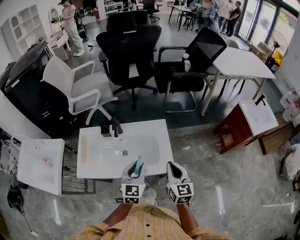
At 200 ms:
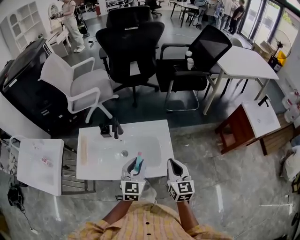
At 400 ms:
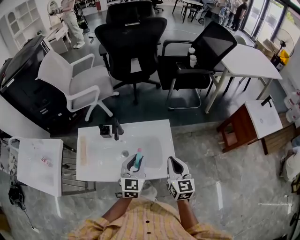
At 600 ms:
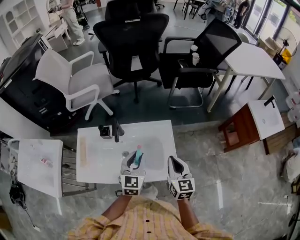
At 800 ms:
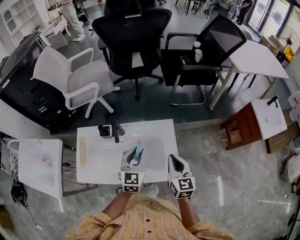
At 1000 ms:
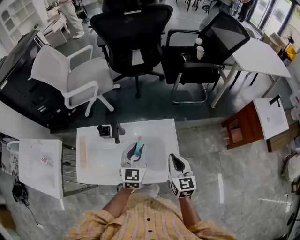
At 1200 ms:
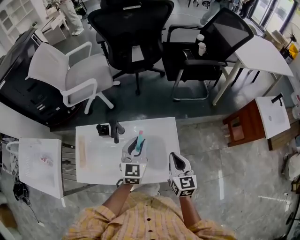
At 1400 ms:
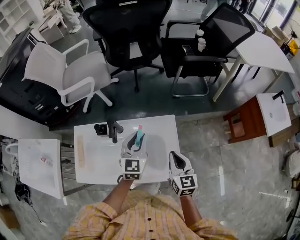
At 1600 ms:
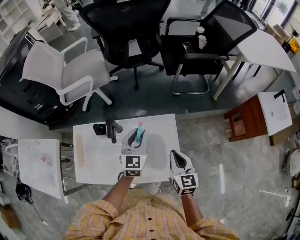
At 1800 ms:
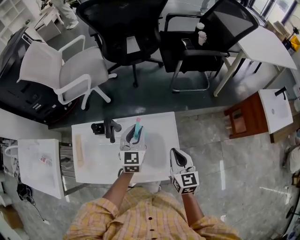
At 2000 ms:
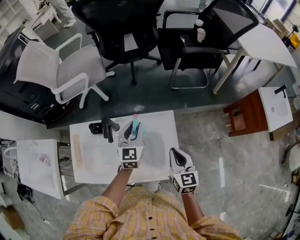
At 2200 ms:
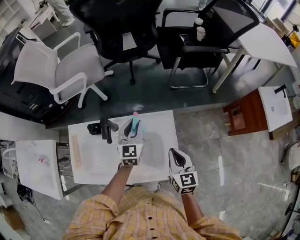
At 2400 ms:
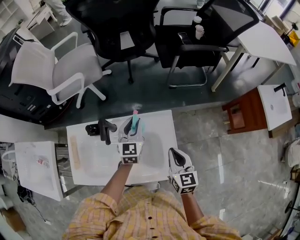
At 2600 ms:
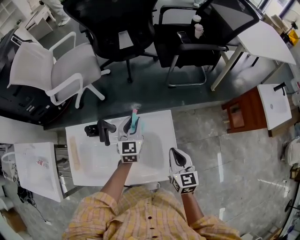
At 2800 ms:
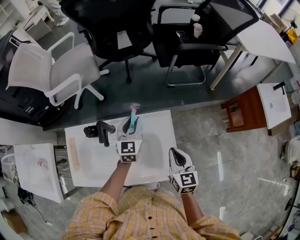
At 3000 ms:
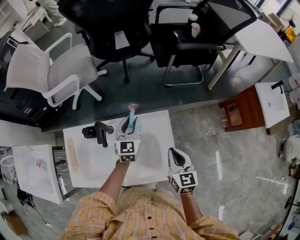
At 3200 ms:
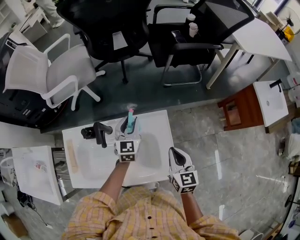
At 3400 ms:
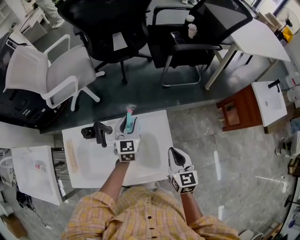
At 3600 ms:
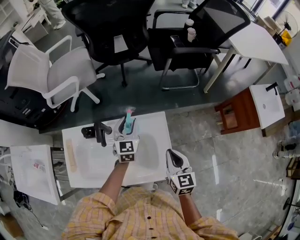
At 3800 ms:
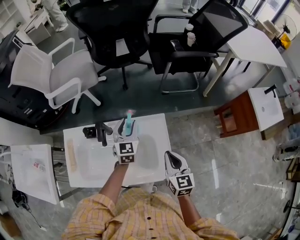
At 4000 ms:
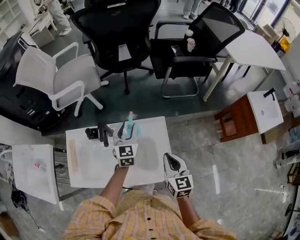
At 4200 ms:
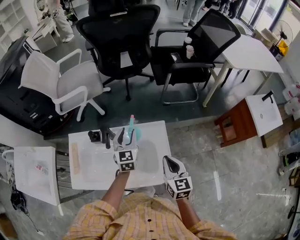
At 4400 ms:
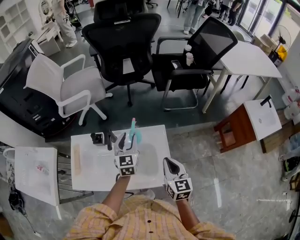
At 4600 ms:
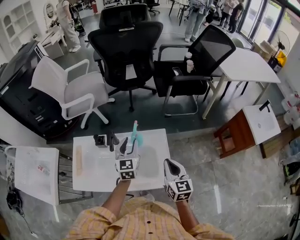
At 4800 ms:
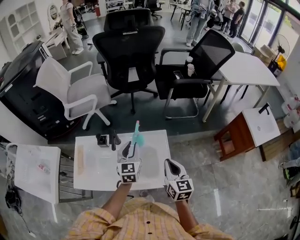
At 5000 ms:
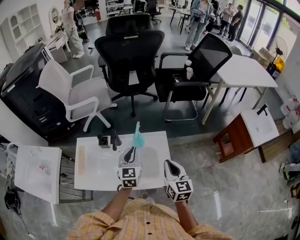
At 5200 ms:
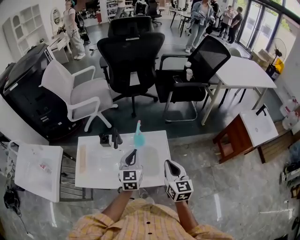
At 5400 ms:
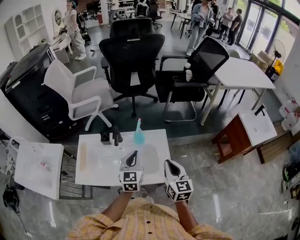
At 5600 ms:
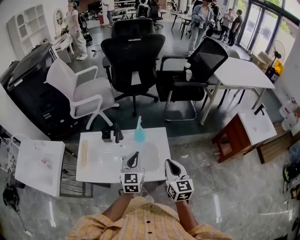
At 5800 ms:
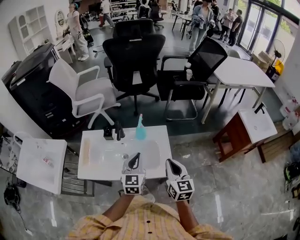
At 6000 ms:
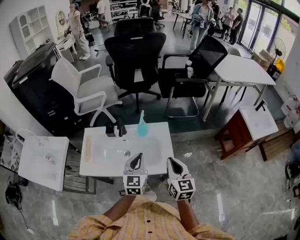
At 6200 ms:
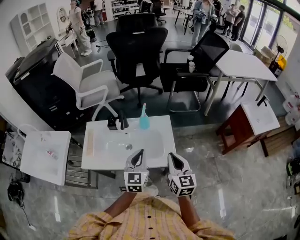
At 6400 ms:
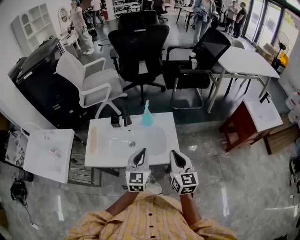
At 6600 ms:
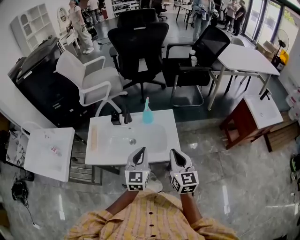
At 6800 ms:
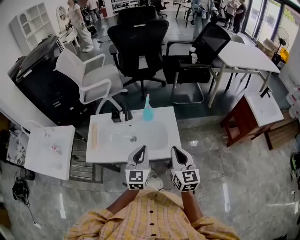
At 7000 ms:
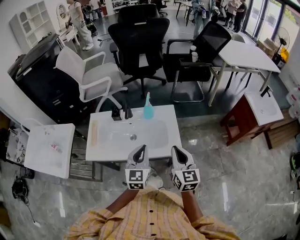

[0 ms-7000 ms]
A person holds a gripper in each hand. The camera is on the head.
0 ms to 1400 ms: The left gripper shifts about 20 cm forward. Meanwhile the right gripper moves forward and downward, approximately 15 cm.
1400 ms to 2800 ms: The left gripper travels forward and downward by some 10 cm.
2800 ms to 4200 ms: The left gripper ends up some 5 cm from where it was; the right gripper is displaced upward by approximately 5 cm.
4200 ms to 5600 ms: The right gripper is displaced backward and upward by roughly 15 cm. Meanwhile the left gripper moves backward and upward, some 20 cm, and closes.
5600 ms to 7000 ms: The two grippers go roughly 10 cm backward.

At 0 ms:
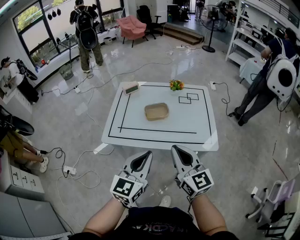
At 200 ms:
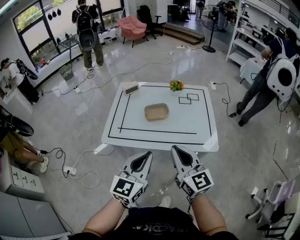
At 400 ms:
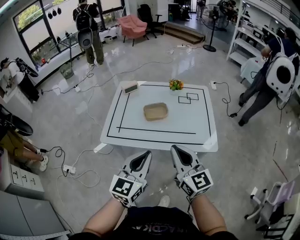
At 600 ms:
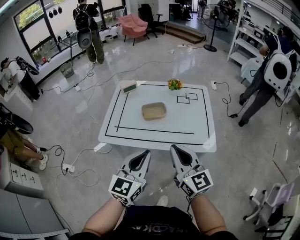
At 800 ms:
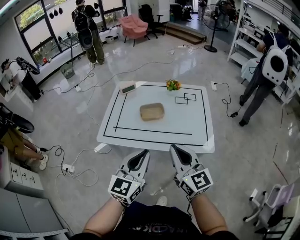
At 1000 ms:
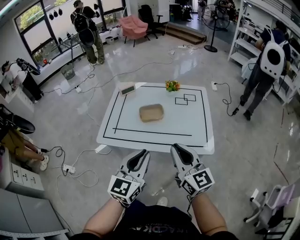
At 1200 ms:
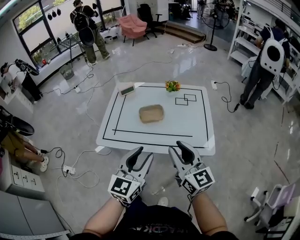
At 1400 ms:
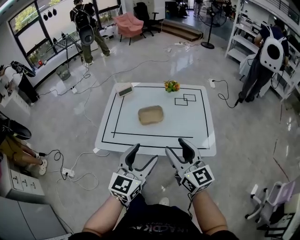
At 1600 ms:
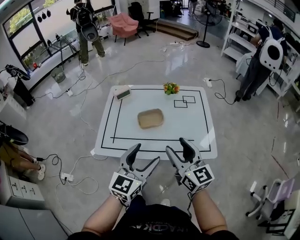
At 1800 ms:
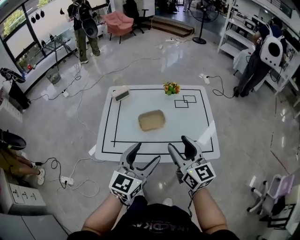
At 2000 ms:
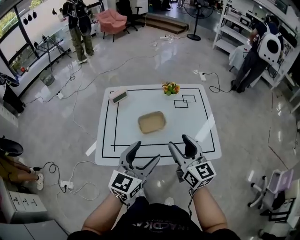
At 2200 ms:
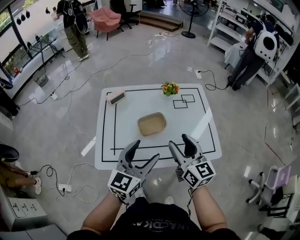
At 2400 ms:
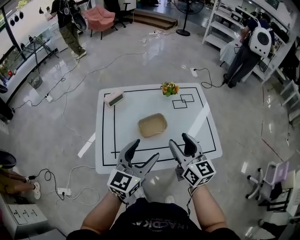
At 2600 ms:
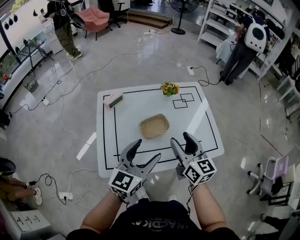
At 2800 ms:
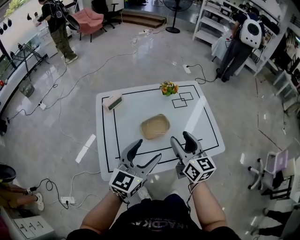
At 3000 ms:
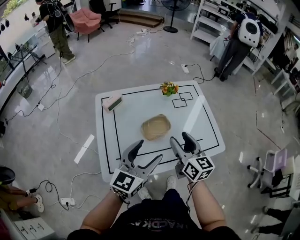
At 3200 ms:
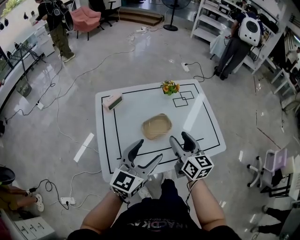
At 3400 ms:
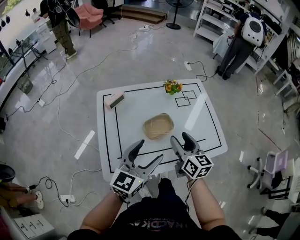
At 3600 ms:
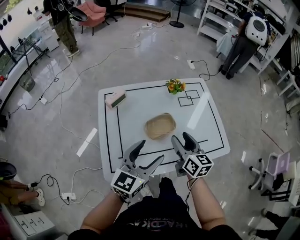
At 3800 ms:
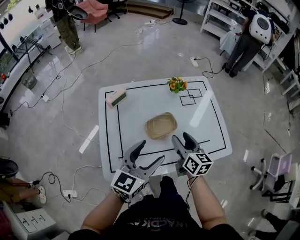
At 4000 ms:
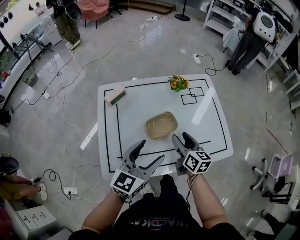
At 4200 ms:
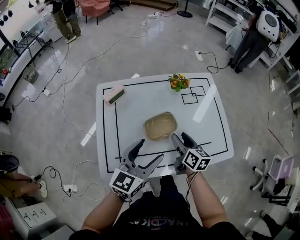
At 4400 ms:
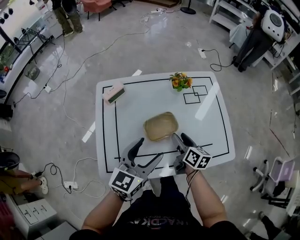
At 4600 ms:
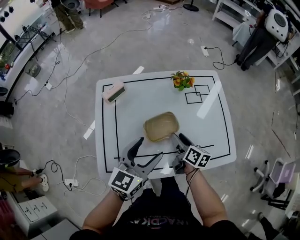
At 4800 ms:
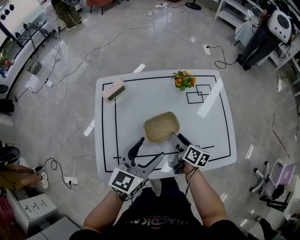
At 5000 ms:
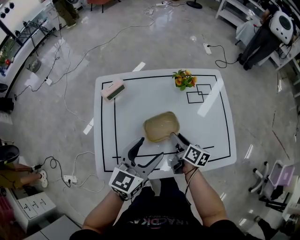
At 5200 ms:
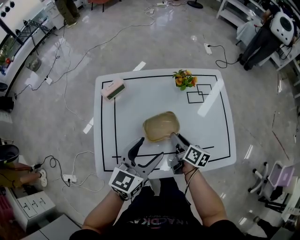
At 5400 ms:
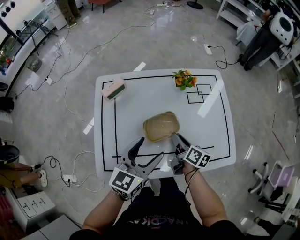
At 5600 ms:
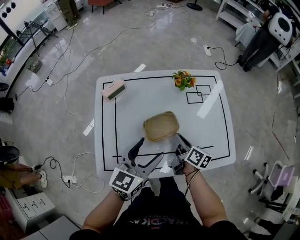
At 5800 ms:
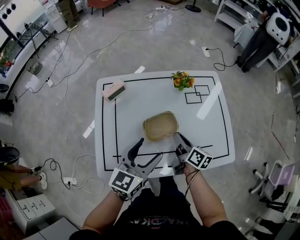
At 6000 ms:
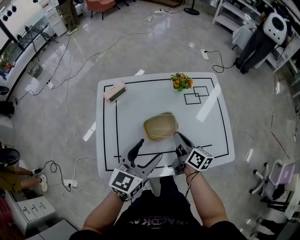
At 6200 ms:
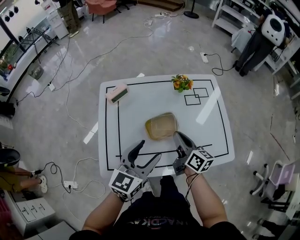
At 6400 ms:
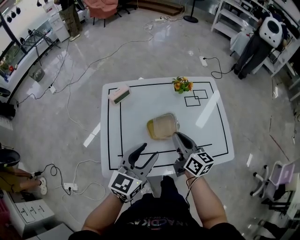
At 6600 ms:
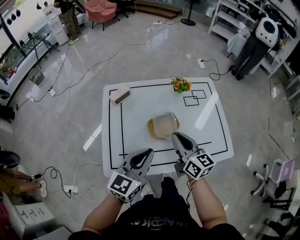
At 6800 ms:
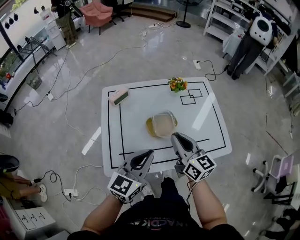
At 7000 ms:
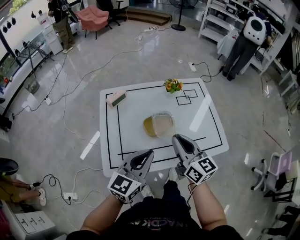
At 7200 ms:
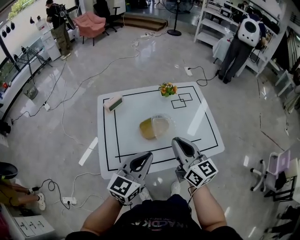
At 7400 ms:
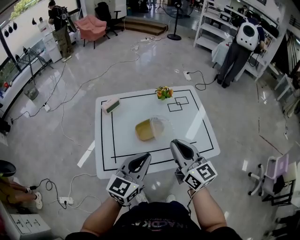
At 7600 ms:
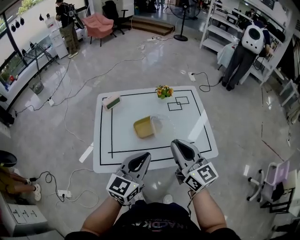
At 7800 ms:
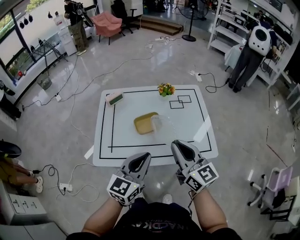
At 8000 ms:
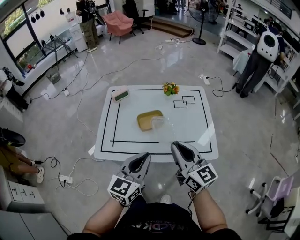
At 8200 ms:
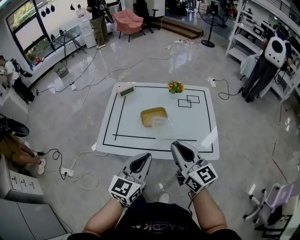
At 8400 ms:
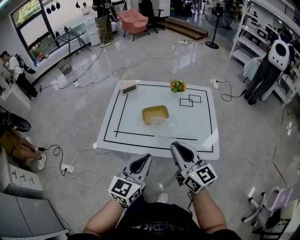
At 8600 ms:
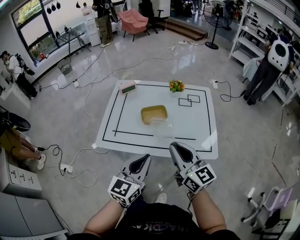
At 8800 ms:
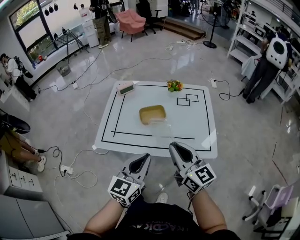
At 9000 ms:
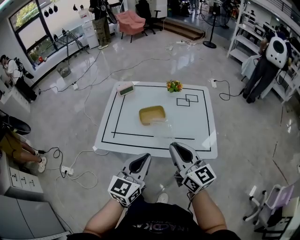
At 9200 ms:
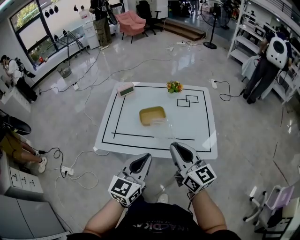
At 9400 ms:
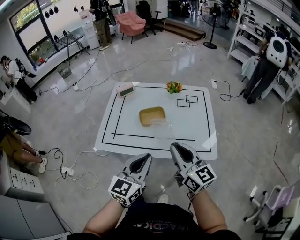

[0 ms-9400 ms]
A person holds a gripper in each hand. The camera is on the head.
0 ms to 1600 ms: The two grippers go approximately 10 cm forward. The left gripper opens. Meanwhile the right gripper opens up.
1600 ms to 3200 ms: The left gripper shifts some 15 cm to the left and forward, and turns by about 20 degrees; the right gripper heads forward, to the left and downward, covering some 15 cm, and turns by about 30 degrees.
3200 ms to 4800 ms: The left gripper goes roughly 10 cm forward and downward. The right gripper shifts about 20 cm downward and forward, and turns by about 40 degrees.
4800 ms to 6200 ms: The right gripper heads upward, covering about 10 cm, and closes.
6200 ms to 7800 ms: The right gripper shifts about 25 cm upward and backward, and rotates some 40 degrees. The left gripper heads backward, to the right and upward, covering about 15 cm, and closes up.
7800 ms to 9400 ms: The left gripper travels backward by some 5 cm, while the right gripper ends up approximately 5 cm from where it was.

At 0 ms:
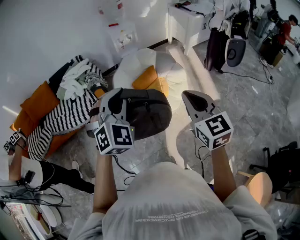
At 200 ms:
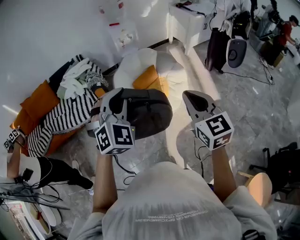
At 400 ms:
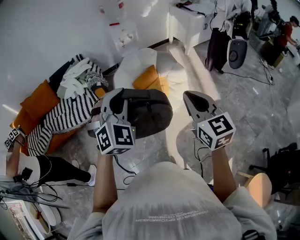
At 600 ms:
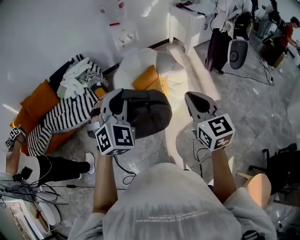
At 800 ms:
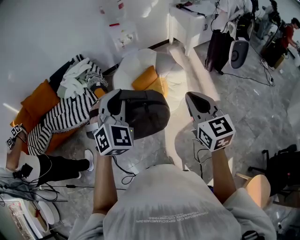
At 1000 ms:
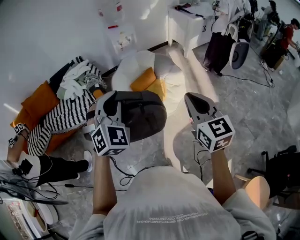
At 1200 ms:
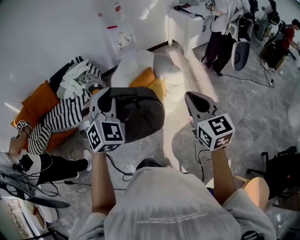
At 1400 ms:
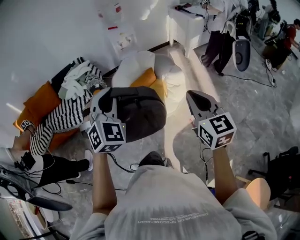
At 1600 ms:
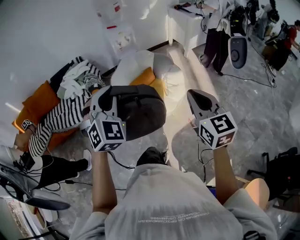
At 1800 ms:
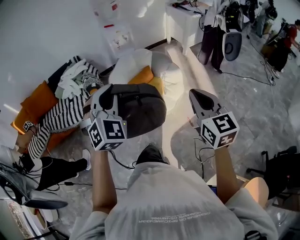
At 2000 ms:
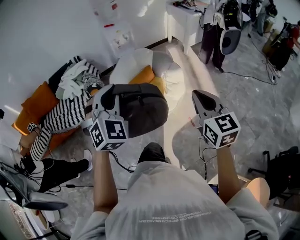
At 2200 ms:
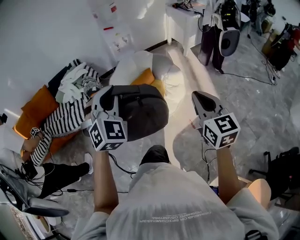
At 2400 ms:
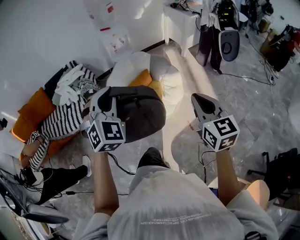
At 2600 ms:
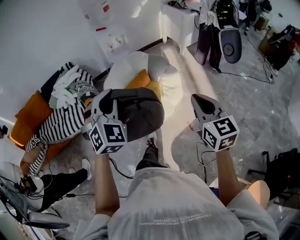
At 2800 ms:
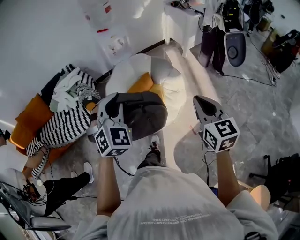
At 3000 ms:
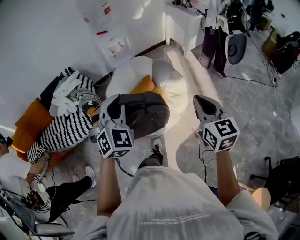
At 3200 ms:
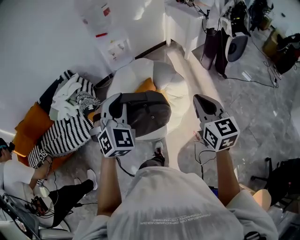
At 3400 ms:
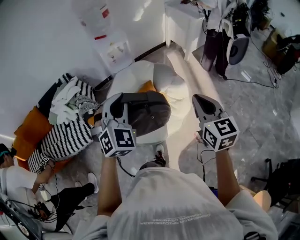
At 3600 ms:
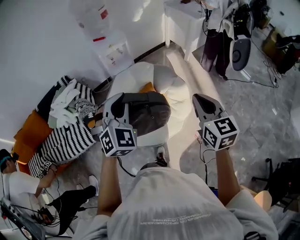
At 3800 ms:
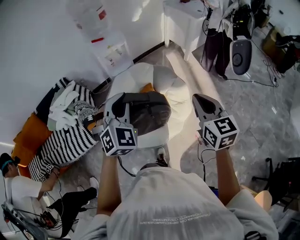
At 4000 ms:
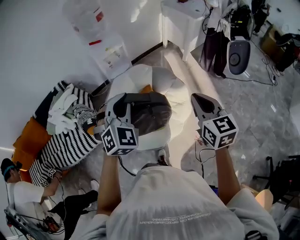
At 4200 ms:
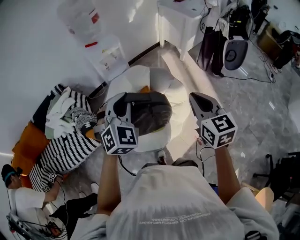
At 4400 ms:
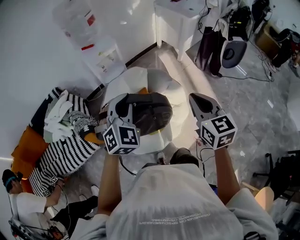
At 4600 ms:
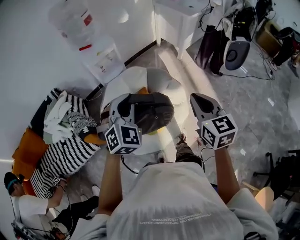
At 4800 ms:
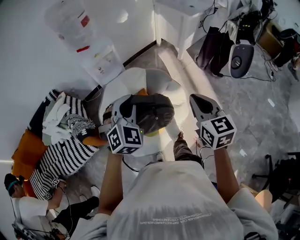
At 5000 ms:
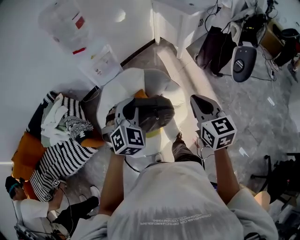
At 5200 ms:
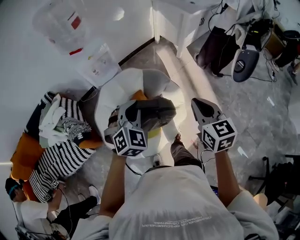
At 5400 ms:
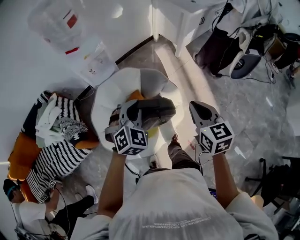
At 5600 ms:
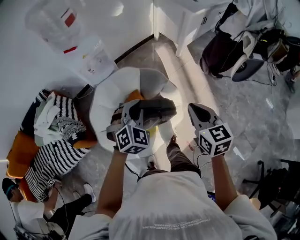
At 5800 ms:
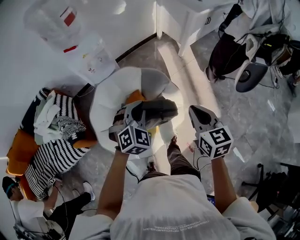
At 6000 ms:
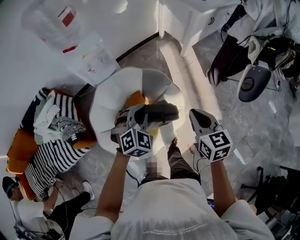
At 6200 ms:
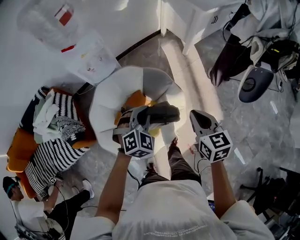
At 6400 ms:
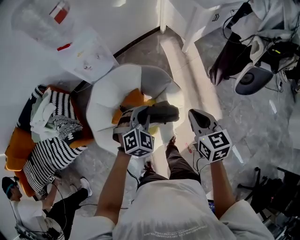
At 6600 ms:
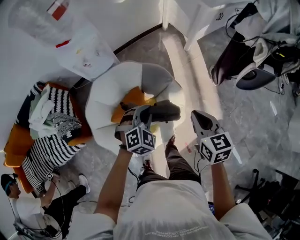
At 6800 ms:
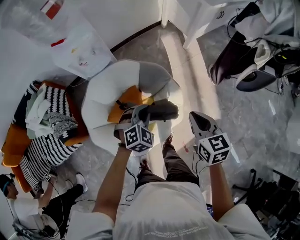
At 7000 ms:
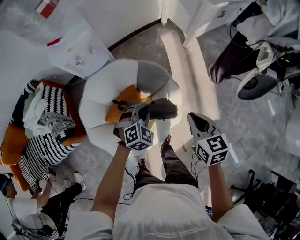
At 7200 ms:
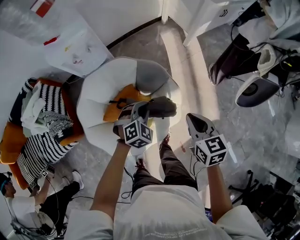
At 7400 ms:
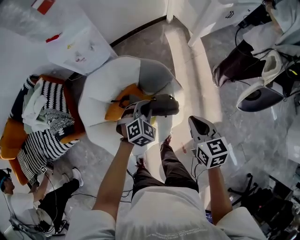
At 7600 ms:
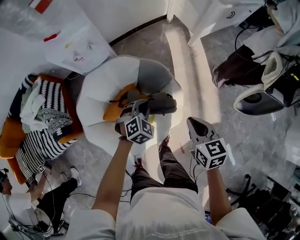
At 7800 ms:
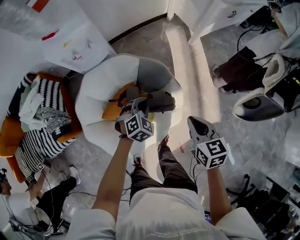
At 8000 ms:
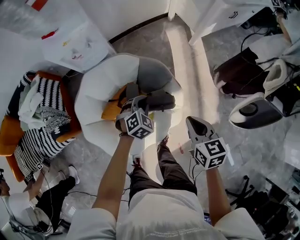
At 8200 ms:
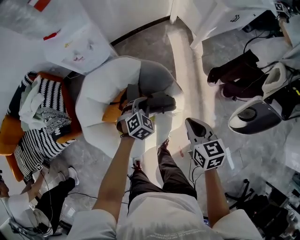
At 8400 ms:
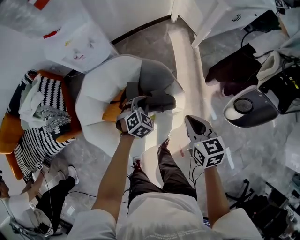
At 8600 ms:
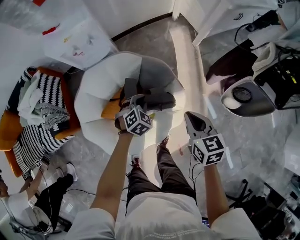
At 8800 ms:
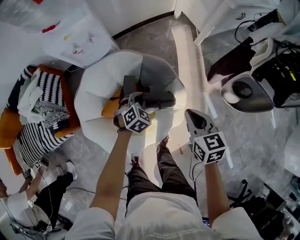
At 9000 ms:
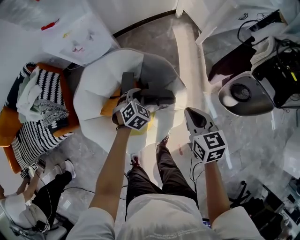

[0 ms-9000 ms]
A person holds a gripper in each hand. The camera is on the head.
0 ms to 1600 ms: The right gripper shifts approximately 10 cm to the right.
1600 ms to 3000 ms: The grippers both shift forward by approximately 20 cm.
3000 ms to 4400 ms: Both grippers travel together forward, about 20 cm.
4400 ms to 6000 ms: The two grippers go about 25 cm forward, downward and to the right.
6000 ms to 7600 ms: Both grippers travel together downward and forward, some 20 cm.
7600 ms to 9000 ms: The right gripper shifts approximately 5 cm forward, while the left gripper moves downward and forward, approximately 10 cm.
